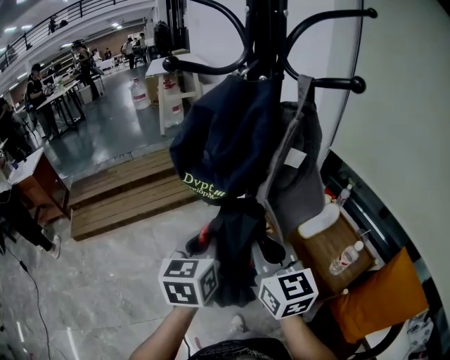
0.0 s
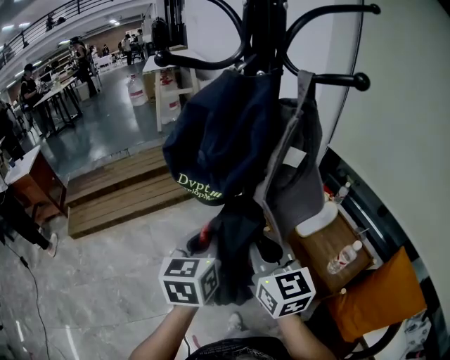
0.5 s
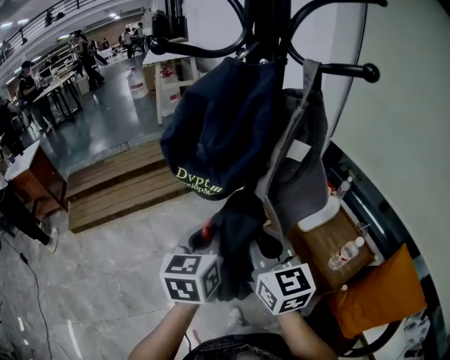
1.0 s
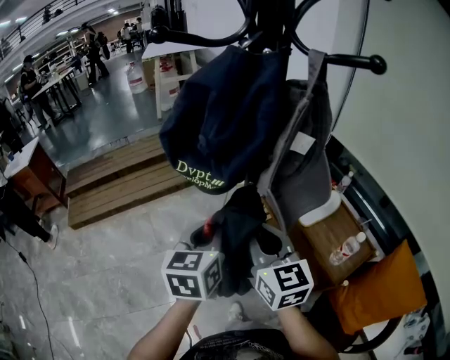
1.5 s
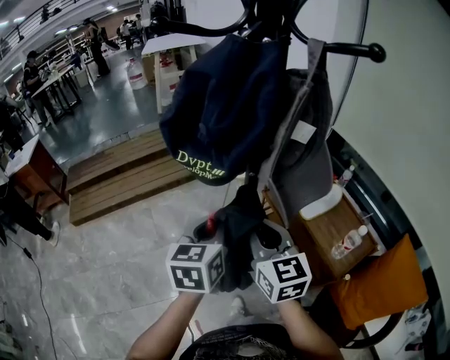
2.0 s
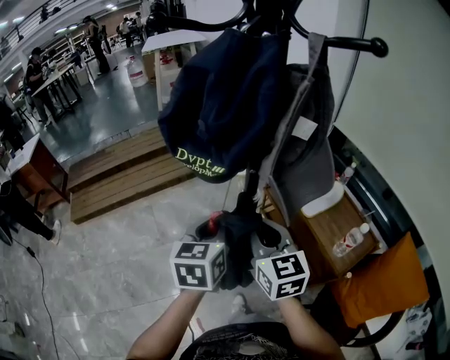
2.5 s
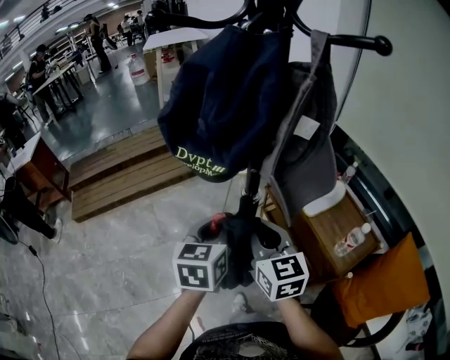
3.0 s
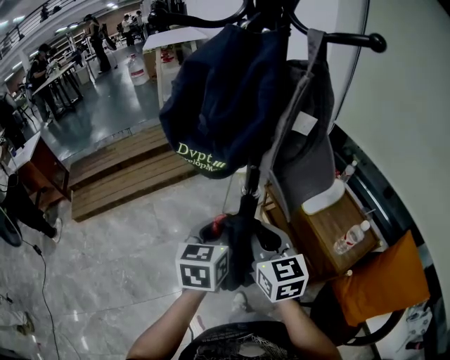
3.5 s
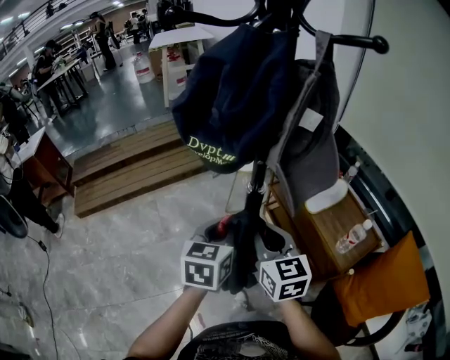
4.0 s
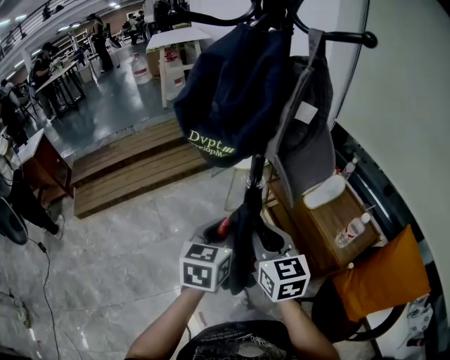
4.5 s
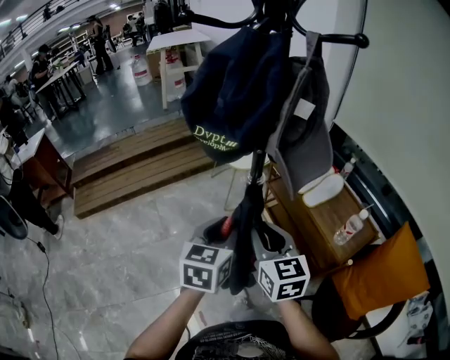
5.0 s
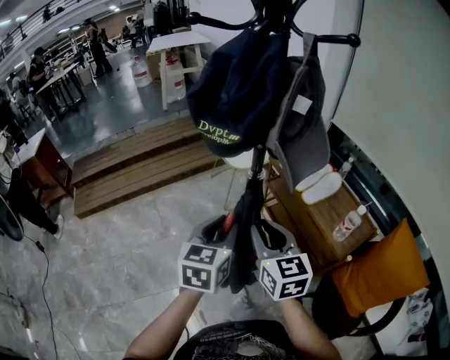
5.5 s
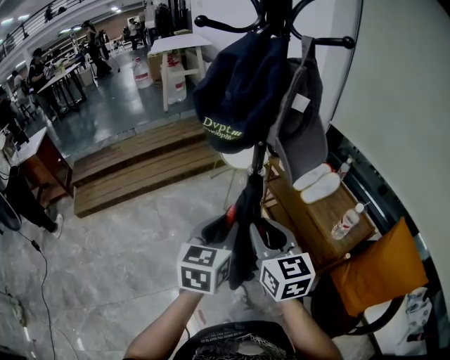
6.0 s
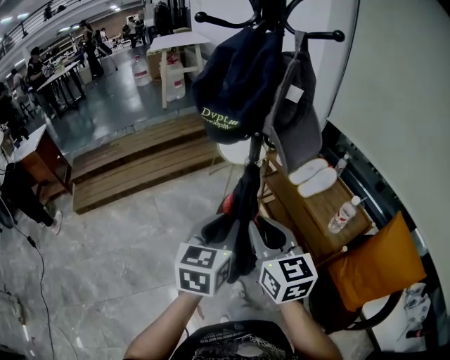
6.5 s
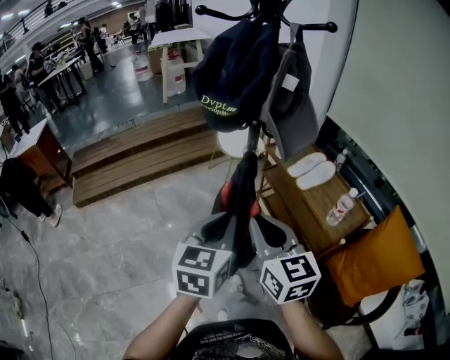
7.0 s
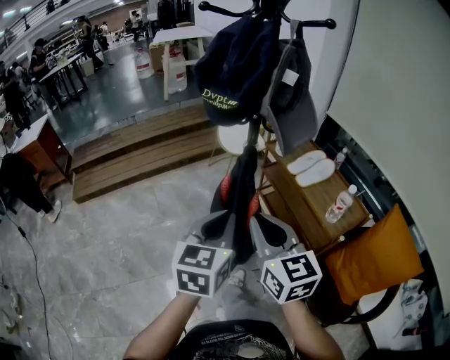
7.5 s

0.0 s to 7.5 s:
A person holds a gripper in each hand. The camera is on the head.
0.0 to 2.0 s: The right gripper shifts roughly 5 cm downward.
2.0 to 4.0 s: The grippers make only small movements.
4.0 to 5.5 s: The two grippers go roughly 5 cm backward.
5.5 to 7.5 s: Both grippers move backward, roughly 10 cm. The left gripper closes.

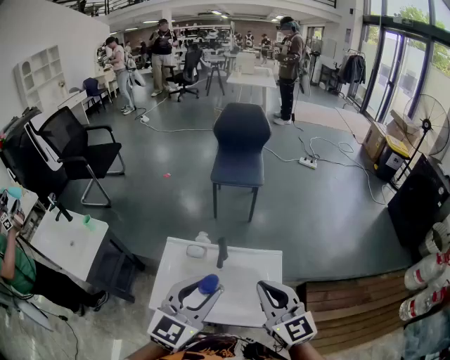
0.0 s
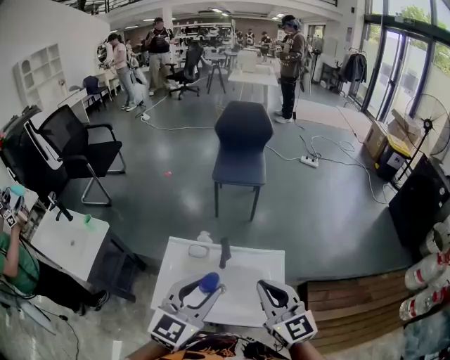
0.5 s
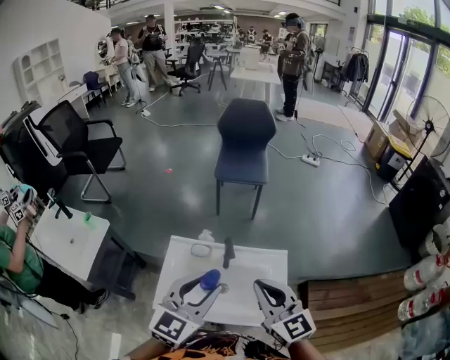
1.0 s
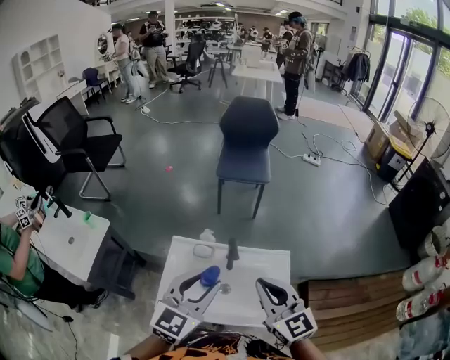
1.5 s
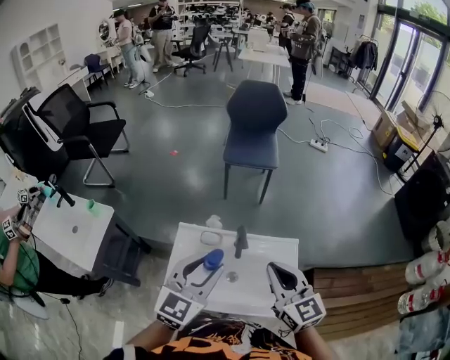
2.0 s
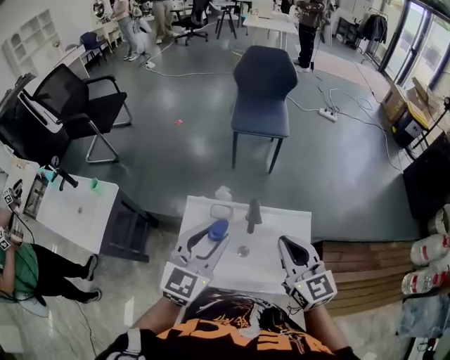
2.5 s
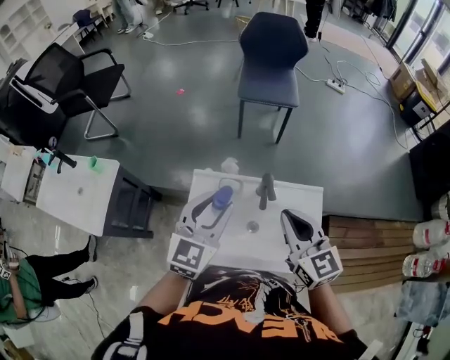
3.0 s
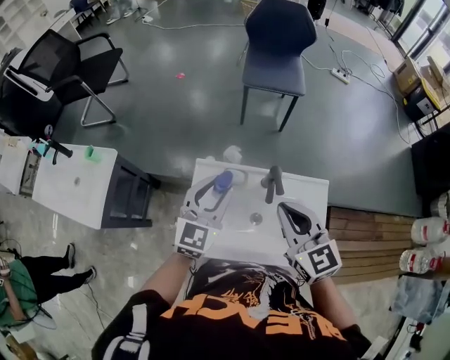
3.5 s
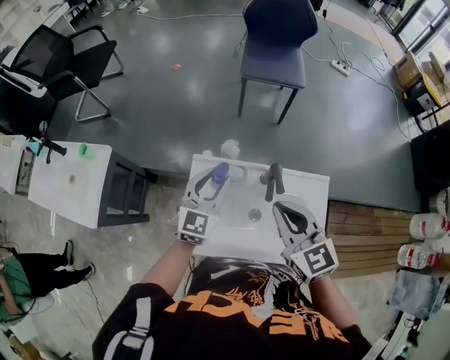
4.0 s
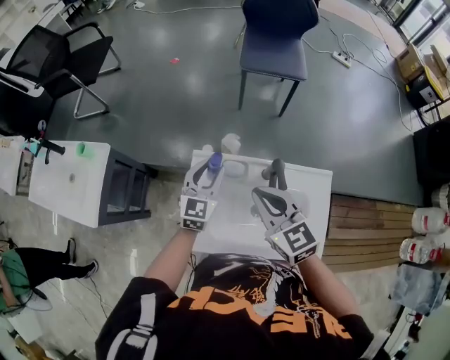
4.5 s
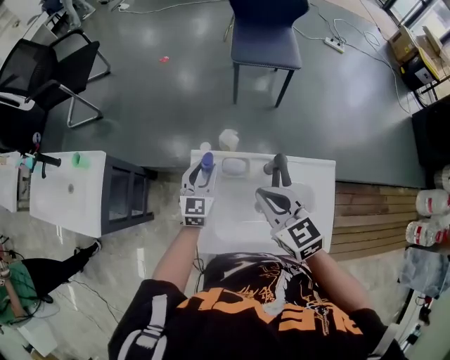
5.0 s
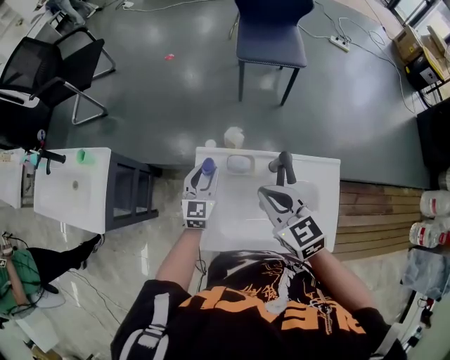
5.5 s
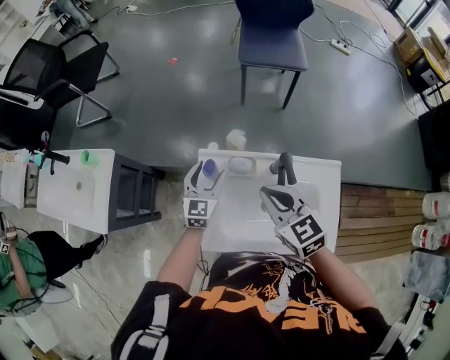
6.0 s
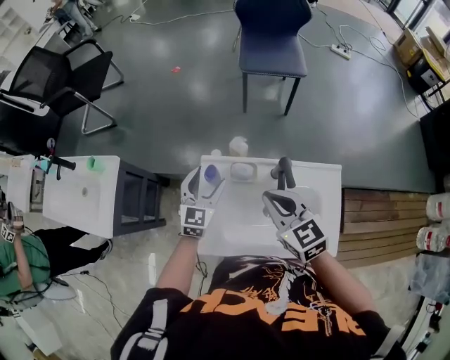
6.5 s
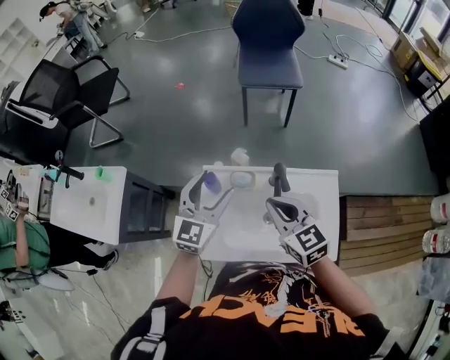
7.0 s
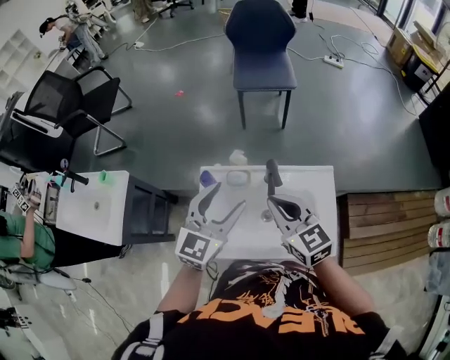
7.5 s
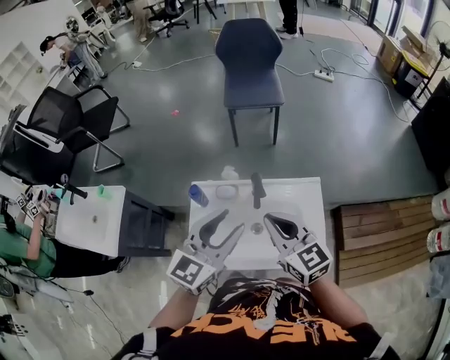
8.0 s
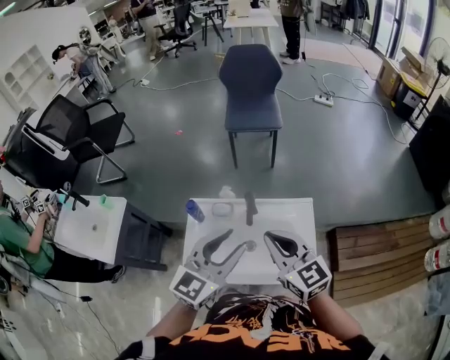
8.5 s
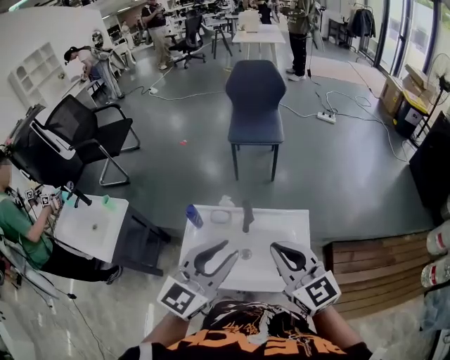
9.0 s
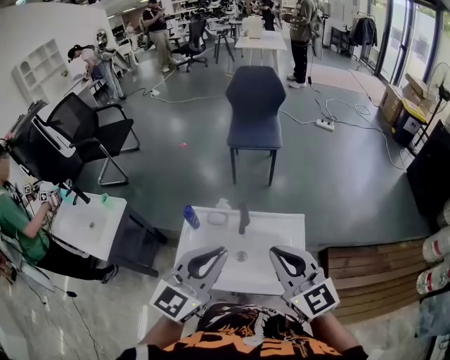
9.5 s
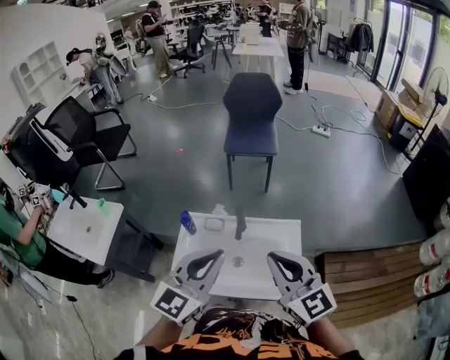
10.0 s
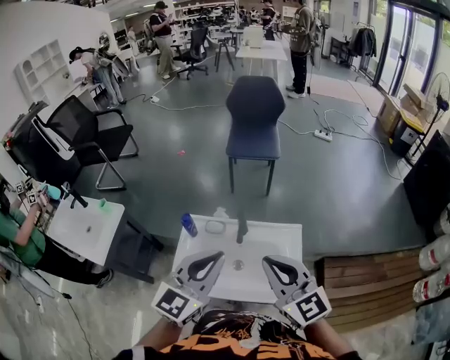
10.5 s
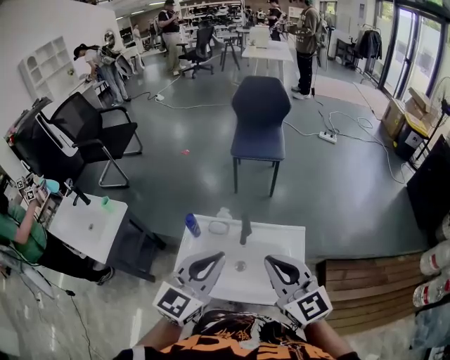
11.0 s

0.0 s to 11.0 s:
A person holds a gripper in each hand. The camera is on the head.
0.0 to 2.0 s: The right gripper travels forward and to the left by approximately 10 cm. The left gripper goes about 10 cm to the left and forward.
2.0 to 3.5 s: The left gripper travels forward, downward and to the left by approximately 20 cm. The right gripper travels to the left and forward by approximately 10 cm.
3.5 to 5.5 s: The left gripper is displaced downward by some 20 cm. The right gripper shifts some 10 cm downward, to the left and forward.
5.5 to 7.5 s: The right gripper goes roughly 10 cm backward, to the right and upward, while the left gripper travels upward, backward and to the right by approximately 30 cm, turns by roughly 20 degrees, and opens its fingers.
7.5 to 9.0 s: The left gripper moves backward, upward and to the right, approximately 20 cm, and closes up, while the right gripper is displaced upward, to the right and backward by roughly 20 cm.
9.0 to 11.0 s: The grippers make only small movements.

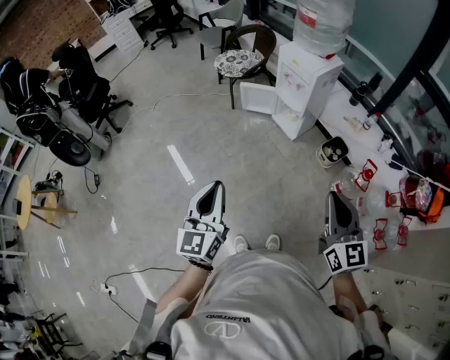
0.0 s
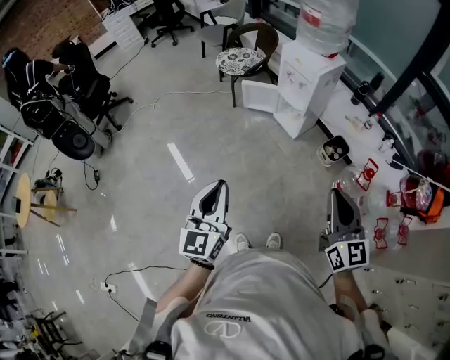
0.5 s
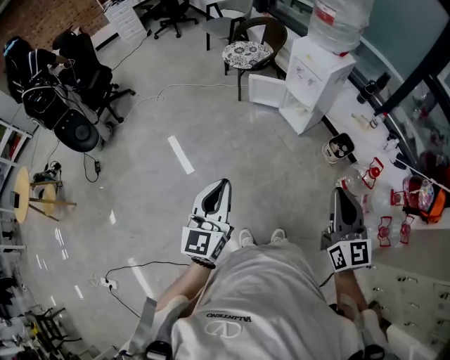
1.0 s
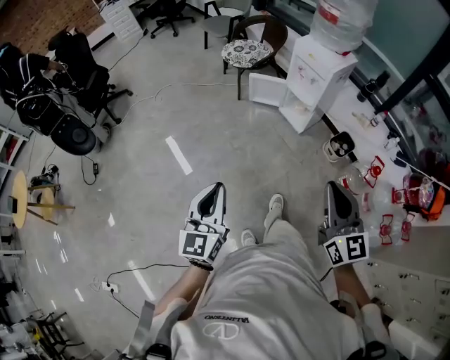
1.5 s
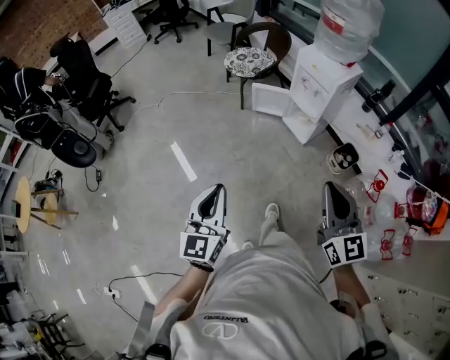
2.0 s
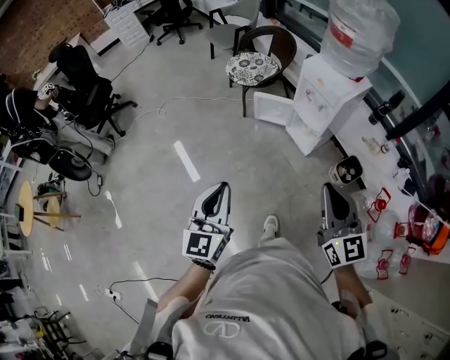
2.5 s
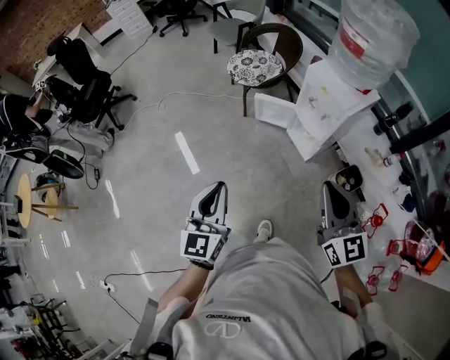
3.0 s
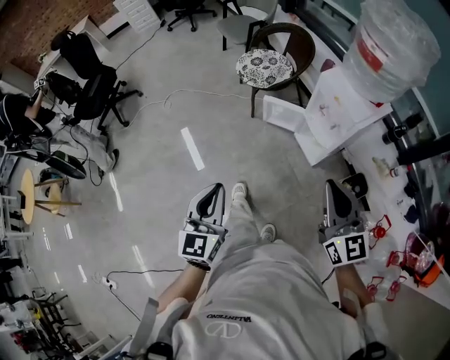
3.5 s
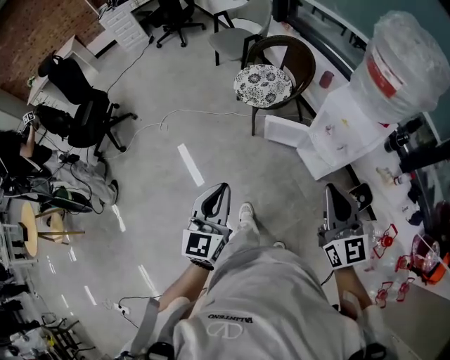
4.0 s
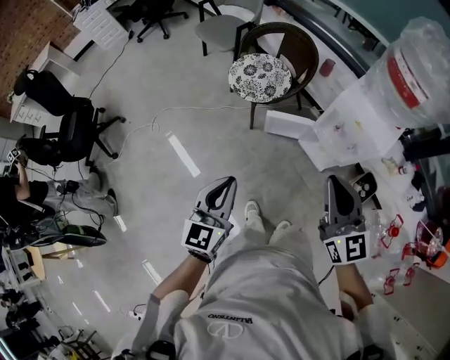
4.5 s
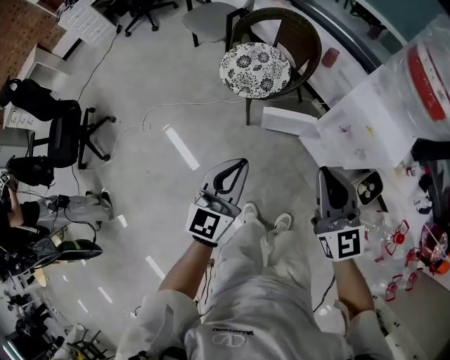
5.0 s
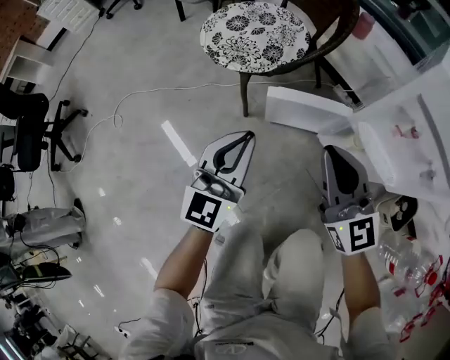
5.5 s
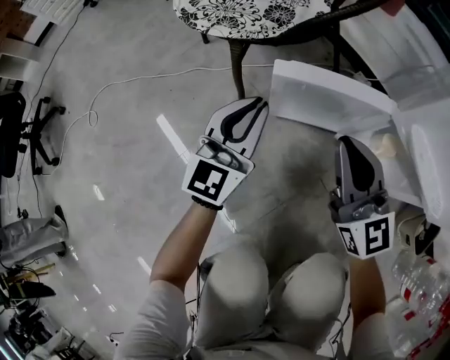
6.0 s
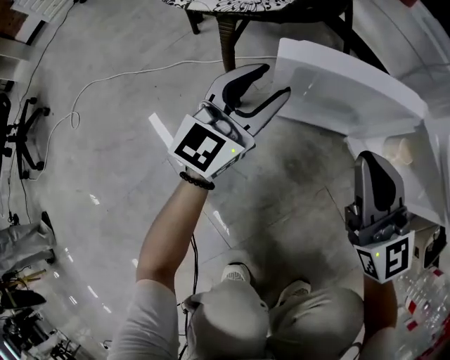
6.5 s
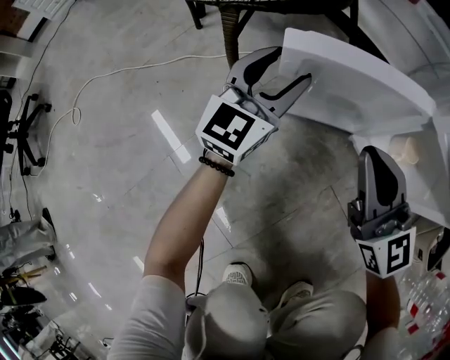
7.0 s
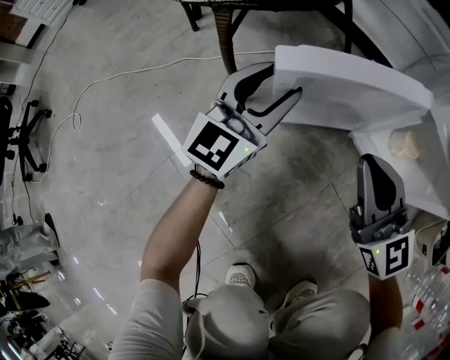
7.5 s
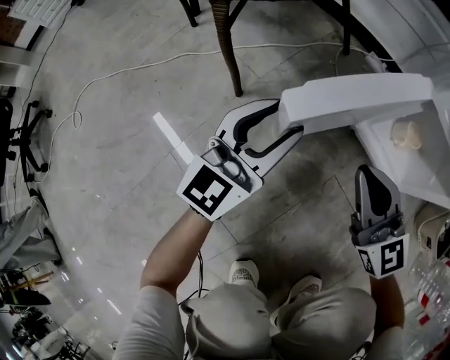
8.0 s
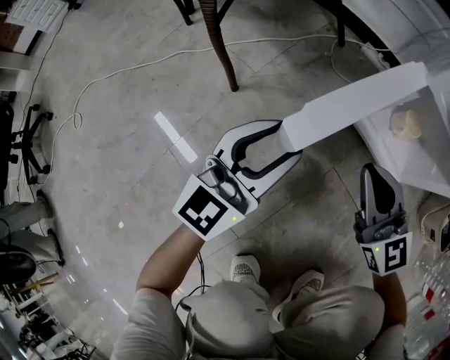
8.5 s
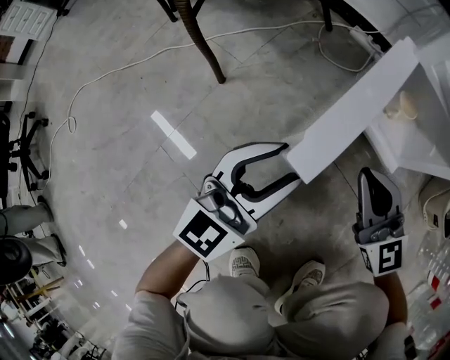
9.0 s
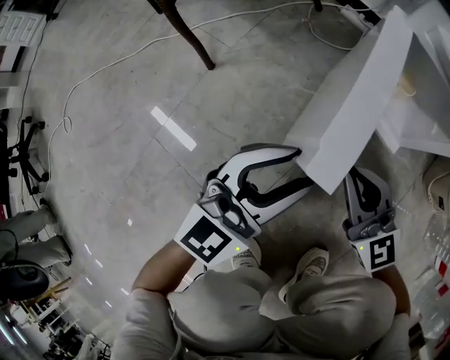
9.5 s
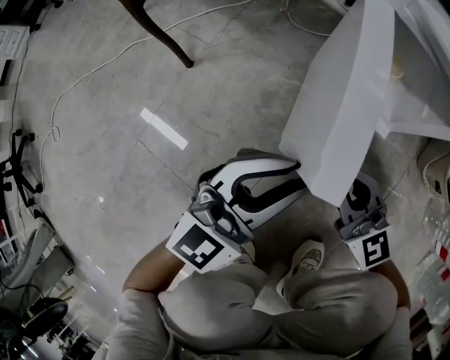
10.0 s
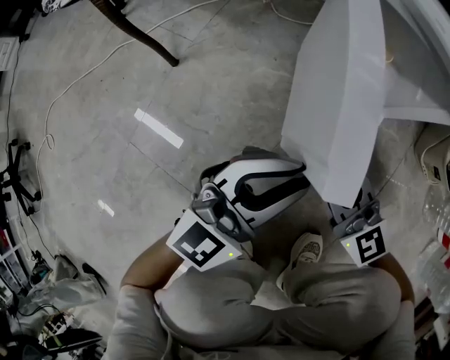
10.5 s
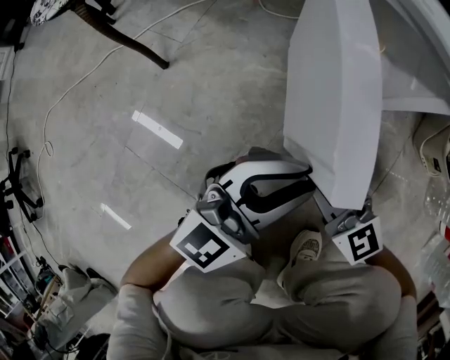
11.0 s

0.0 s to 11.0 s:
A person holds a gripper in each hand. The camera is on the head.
0.0 to 2.0 s: The grippers both shift to the left and forward by about 15 cm.
2.0 to 3.5 s: The grippers both shift forward by roughly 25 cm.
3.5 to 5.5 s: Both grippers are carried forward, roughly 50 cm. The two grippers go approximately 40 cm downward. The left gripper turns by some 30 degrees.
5.5 to 7.5 s: The right gripper heads downward, covering some 30 cm. Meanwhile the left gripper is displaced downward and forward by about 35 cm, and opens.
7.5 to 9.0 s: The right gripper goes some 15 cm to the right, backward and downward; the left gripper moves backward and to the right, roughly 20 cm.
9.0 to 11.0 s: The left gripper heads to the right, covering roughly 15 cm, and closes its fingers; the right gripper goes roughly 10 cm backward and downward, and opens up.
